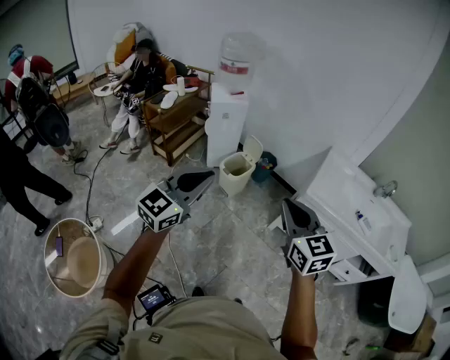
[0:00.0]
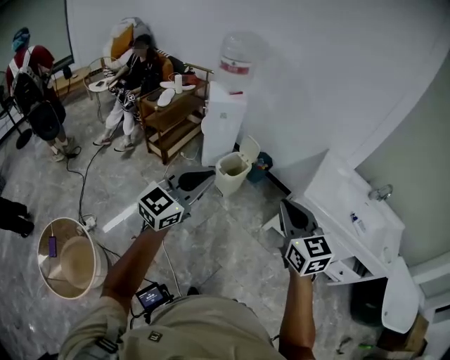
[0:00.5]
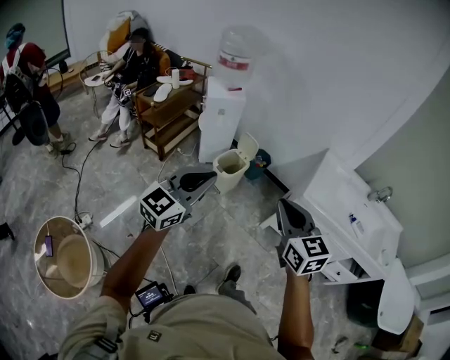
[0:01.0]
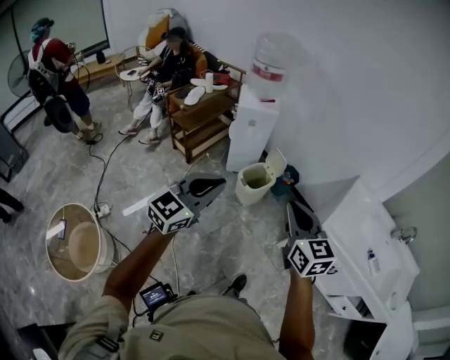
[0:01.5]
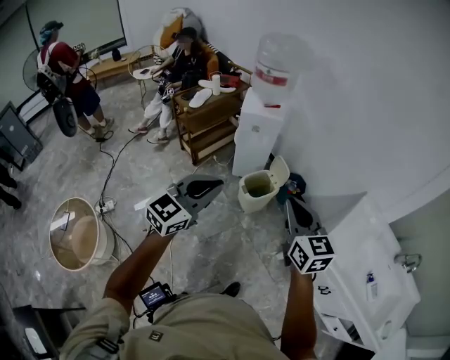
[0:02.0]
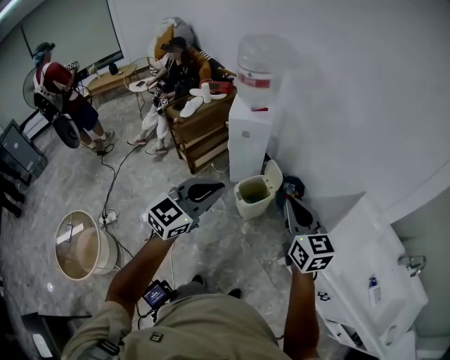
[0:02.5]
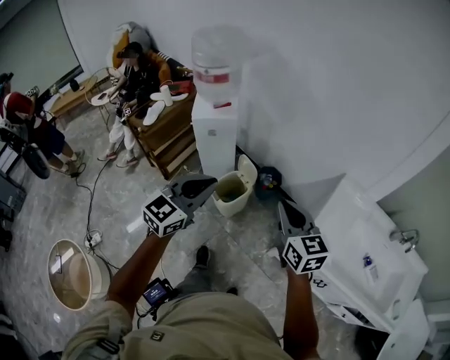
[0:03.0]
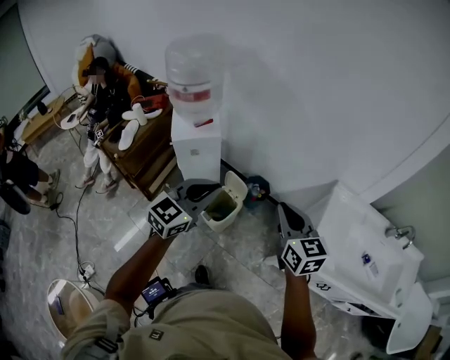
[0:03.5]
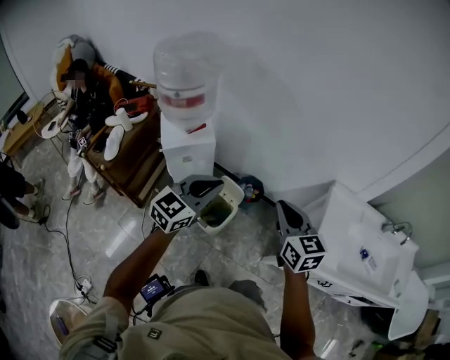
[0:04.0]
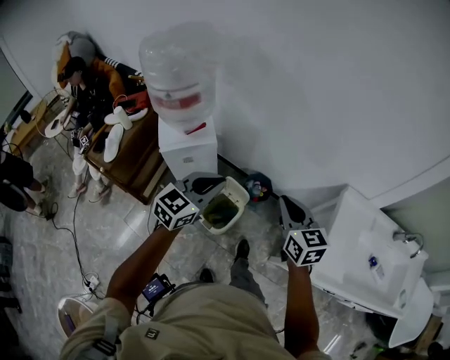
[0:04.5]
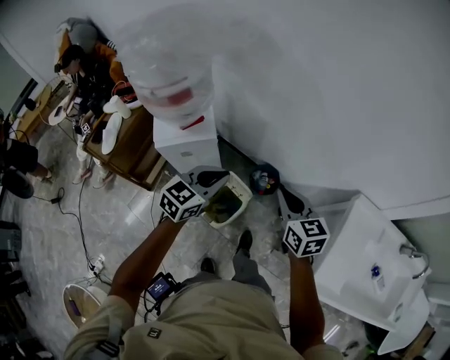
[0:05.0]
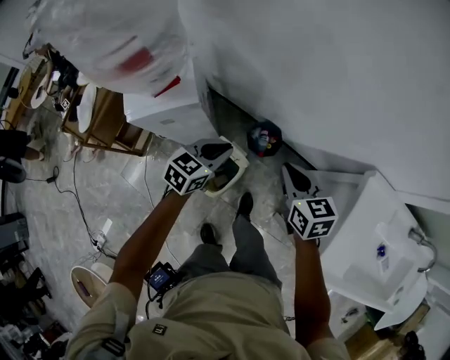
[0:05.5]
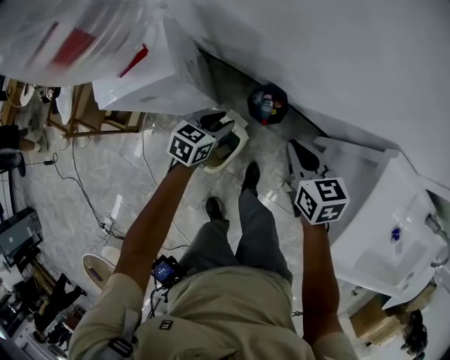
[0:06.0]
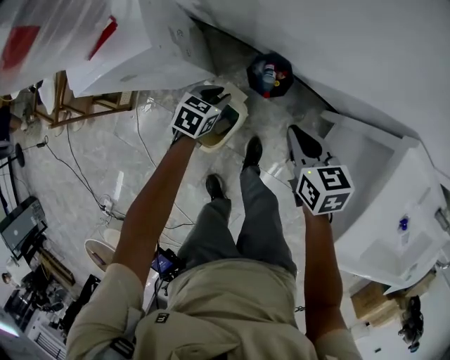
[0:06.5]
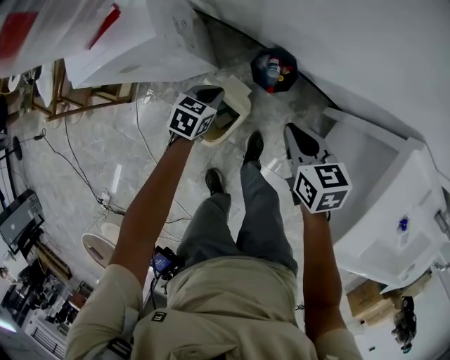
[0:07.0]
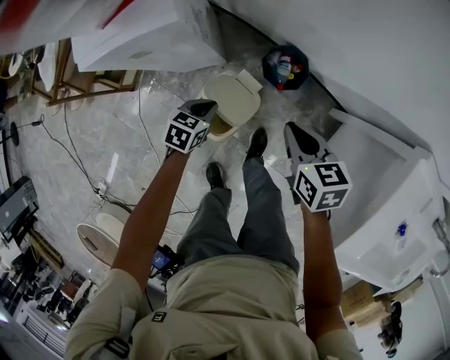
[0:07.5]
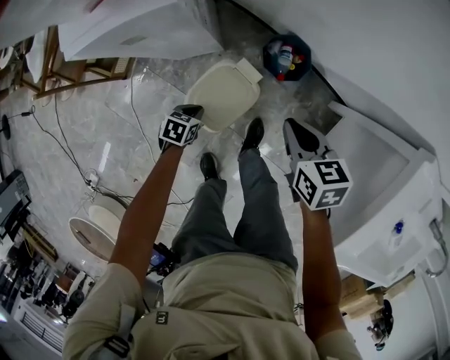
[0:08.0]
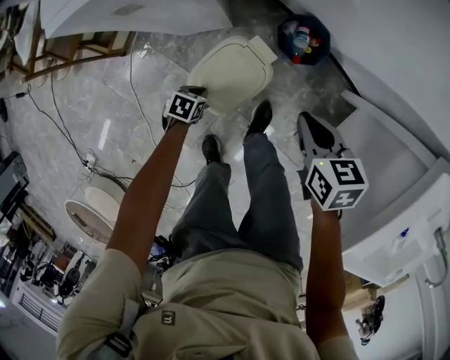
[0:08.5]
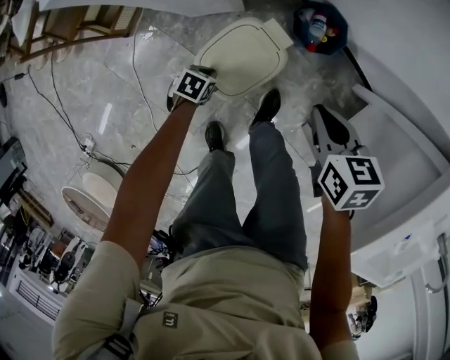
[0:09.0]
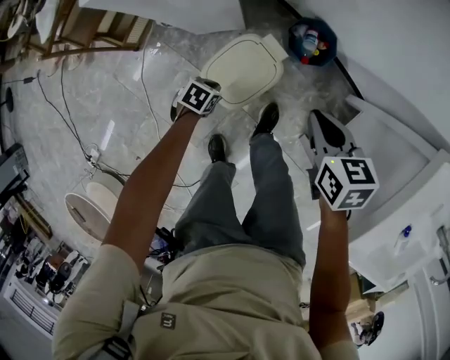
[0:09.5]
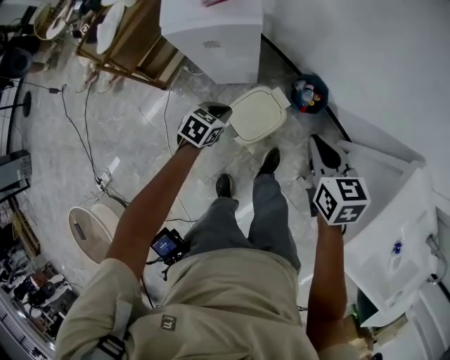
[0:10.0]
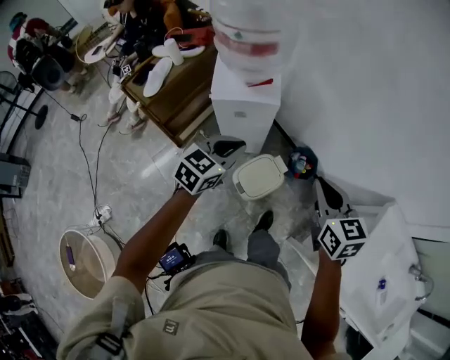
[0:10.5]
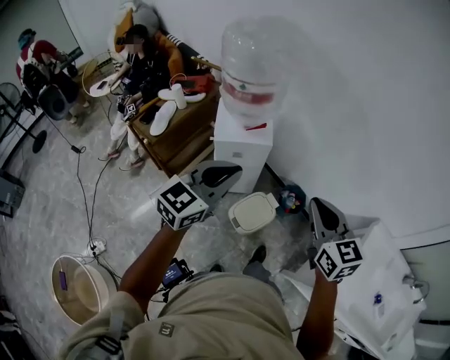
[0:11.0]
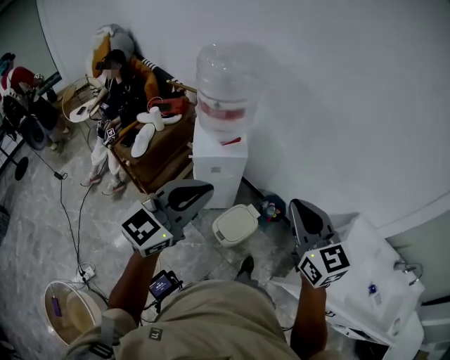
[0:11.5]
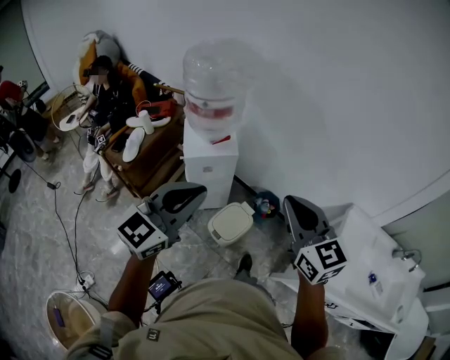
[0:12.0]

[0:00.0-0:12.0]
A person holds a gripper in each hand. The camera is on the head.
0:00.0 to 0:02.0: Both grippers travel together forward, some 25 cm.
0:02.0 to 0:04.0: The right gripper moves about 30 cm, and changes its angle by approximately 30 degrees. Meanwhile the left gripper changes place by approximately 40 cm, and rotates some 30 degrees.
0:04.0 to 0:06.0: The two grippers go approximately 50 cm downward and forward. The right gripper swivels some 30 degrees. Meanwhile the left gripper tips its fingers downward by some 30 degrees, and opens up.
0:06.0 to 0:08.0: The right gripper is displaced downward and to the left by approximately 15 cm. Meanwhile the left gripper goes roughly 30 cm downward, backward and to the left, changes its angle by some 30 degrees, and closes.
0:08.0 to 0:10.0: Both grippers move upward, about 20 cm.
0:10.0 to 0:12.0: The two grippers go approximately 50 cm upward. The left gripper points its fingers about 50 degrees further upward. The right gripper tilts its fingers some 30 degrees upward.

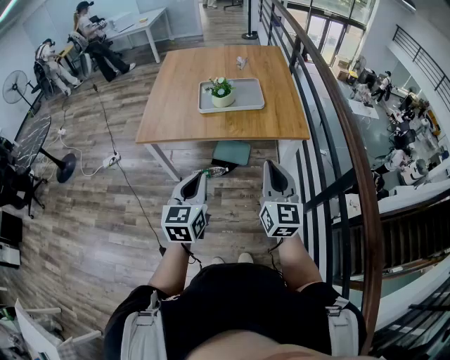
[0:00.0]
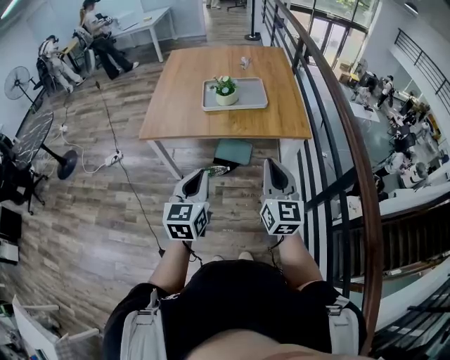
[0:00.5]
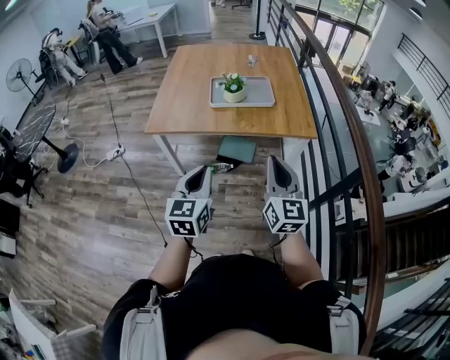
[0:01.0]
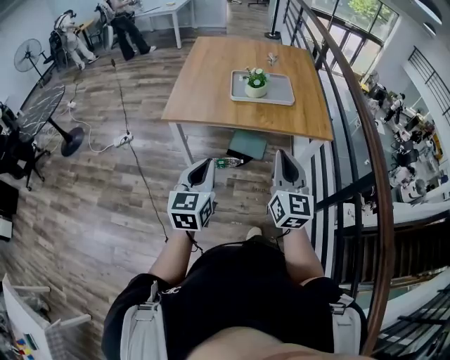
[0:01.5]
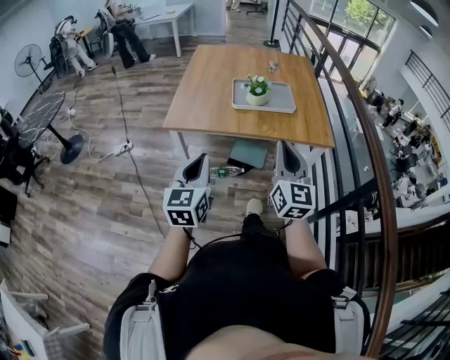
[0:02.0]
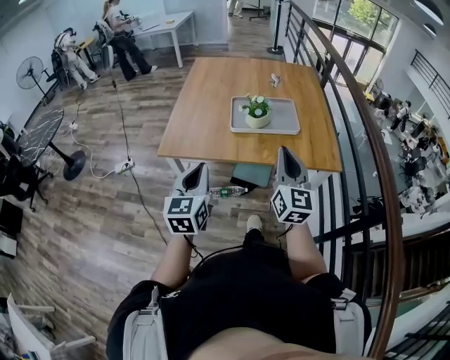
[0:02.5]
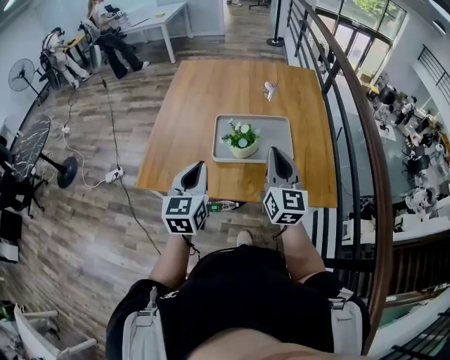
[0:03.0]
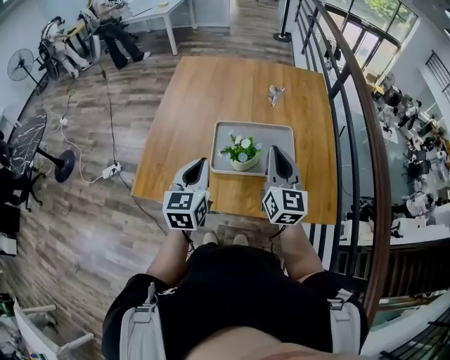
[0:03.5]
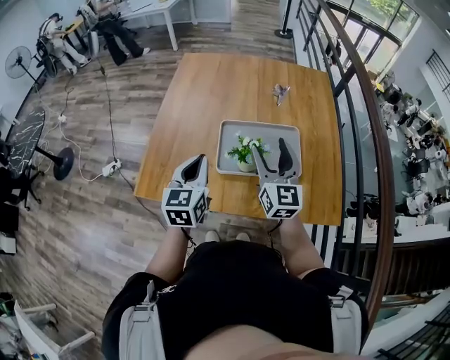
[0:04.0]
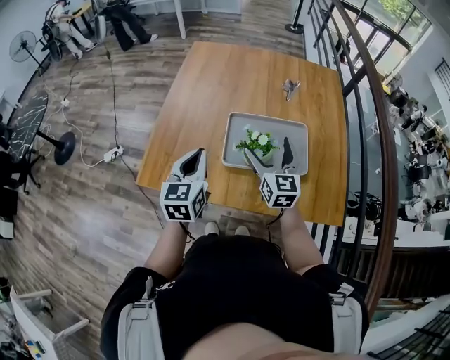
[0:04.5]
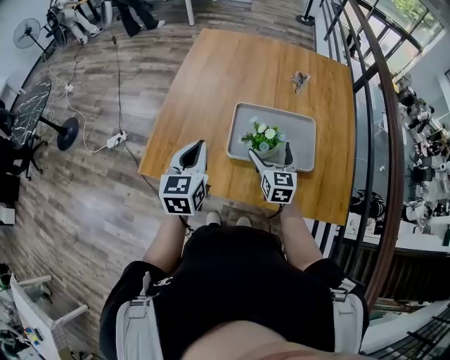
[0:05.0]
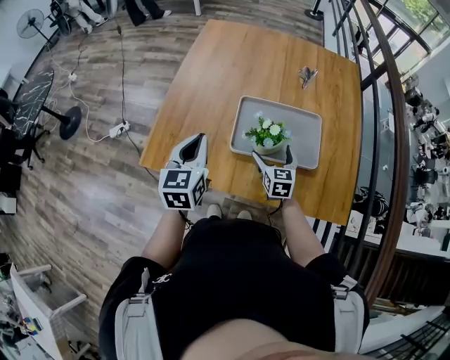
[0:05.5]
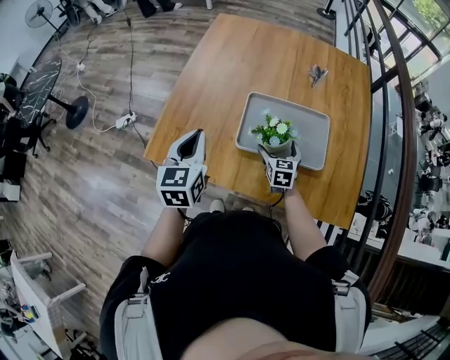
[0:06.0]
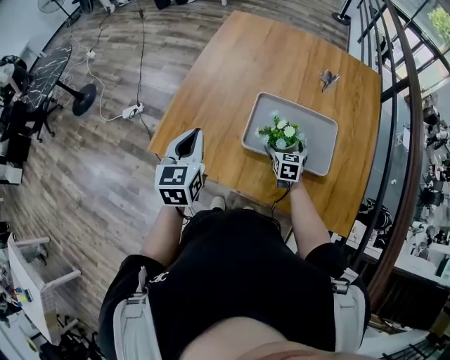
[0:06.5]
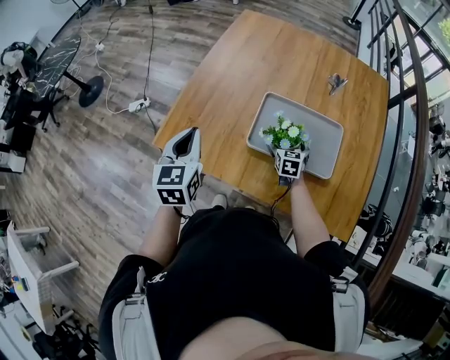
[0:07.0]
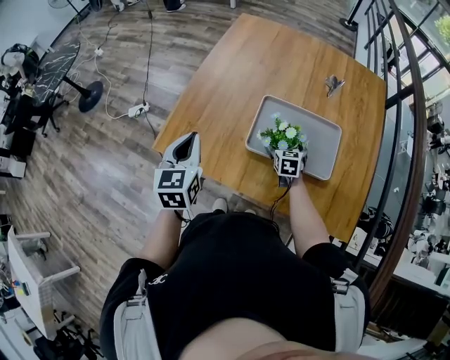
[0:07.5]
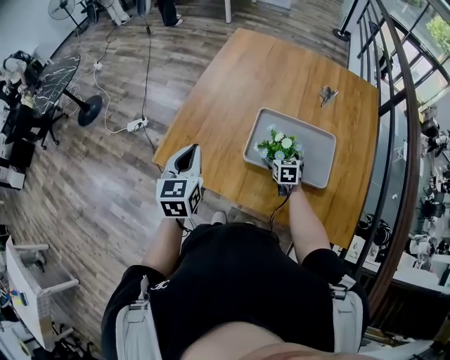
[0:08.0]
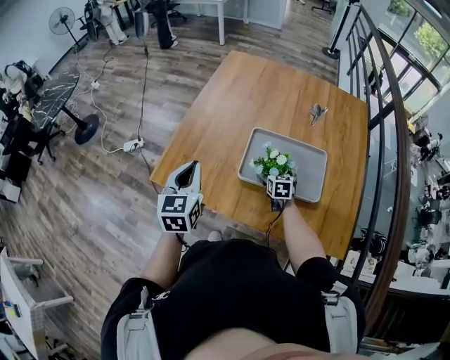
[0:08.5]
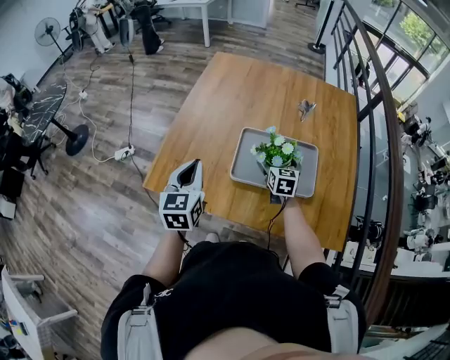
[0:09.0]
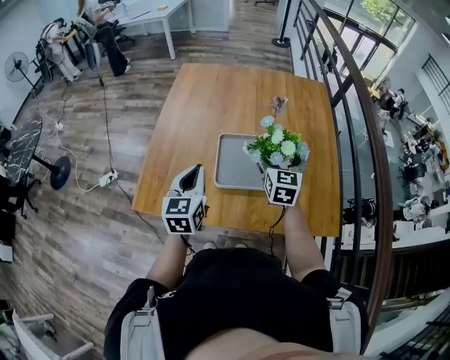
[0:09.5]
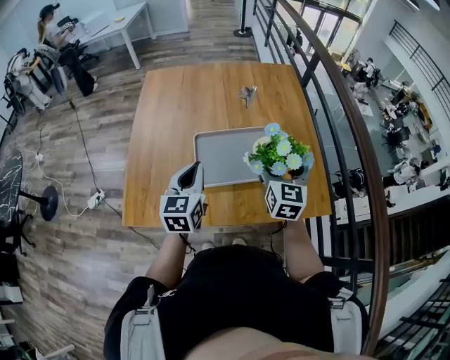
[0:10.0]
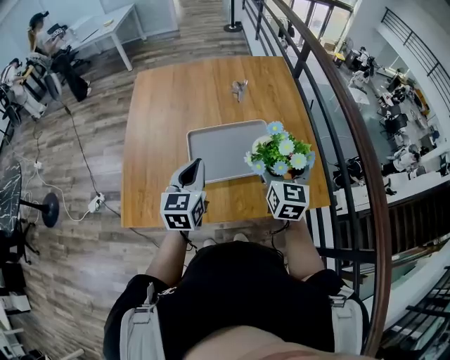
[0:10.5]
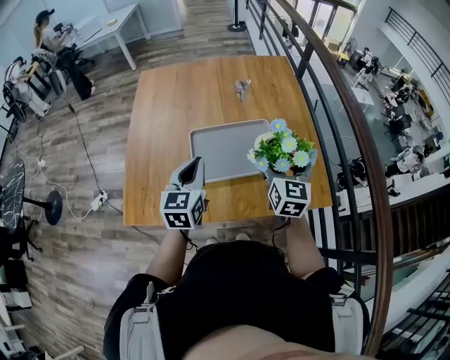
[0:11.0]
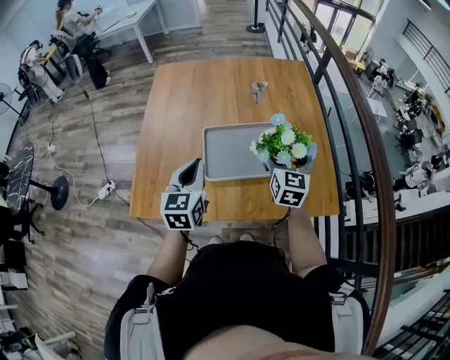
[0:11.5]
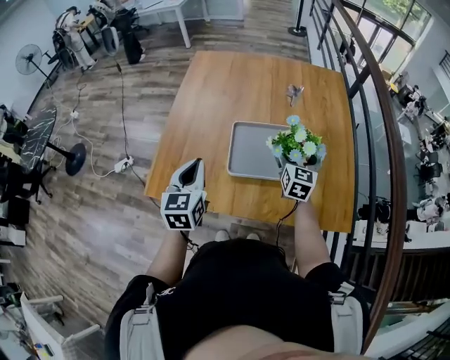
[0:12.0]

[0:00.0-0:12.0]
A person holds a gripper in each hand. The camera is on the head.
0:00.0 to 0:02.0: The grippers both shift to the left by approximately 15 cm.
0:02.0 to 0:04.0: Both grippers are carried forward, some 50 cm. The right gripper opens its fingers.
0:04.0 to 0:06.0: The right gripper is displaced downward by about 30 cm, tilts its fingers approximately 40 degrees downward, and opens; the left gripper moves to the left, approximately 5 cm.
0:06.0 to 0:08.0: The right gripper moves roughly 5 cm.
0:08.0 to 0:10.0: The right gripper travels upward by approximately 30 cm, and tilts its fingers roughly 30 degrees upward. Meanwhile the left gripper changes place by about 15 cm, and turns by roughly 30 degrees.
0:10.0 to 0:12.0: The right gripper is displaced downward and forward by roughly 10 cm. The left gripper heads to the left, covering approximately 5 cm.

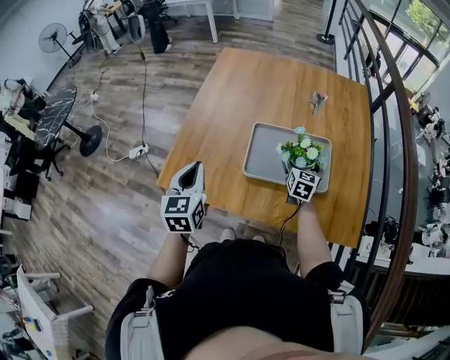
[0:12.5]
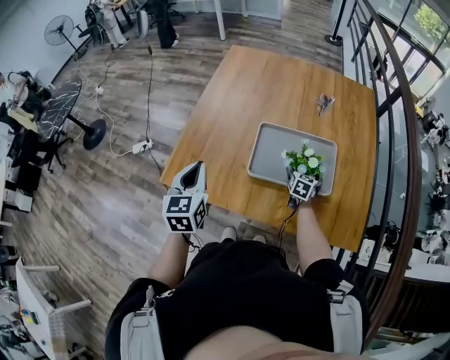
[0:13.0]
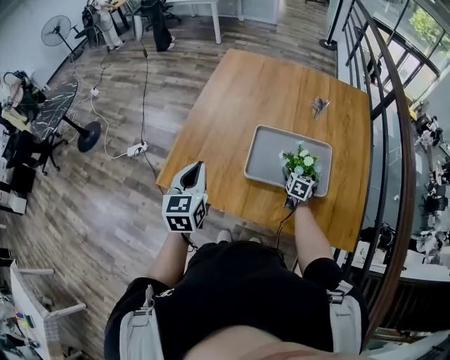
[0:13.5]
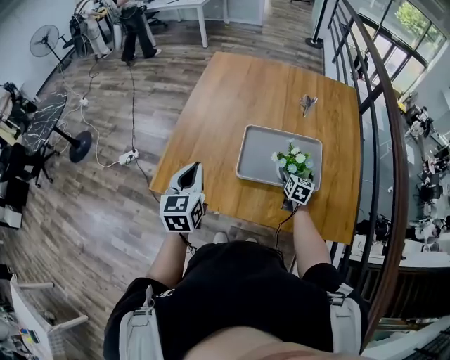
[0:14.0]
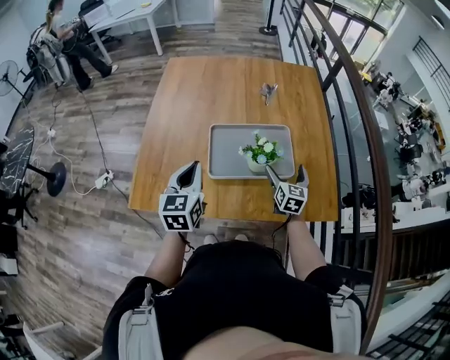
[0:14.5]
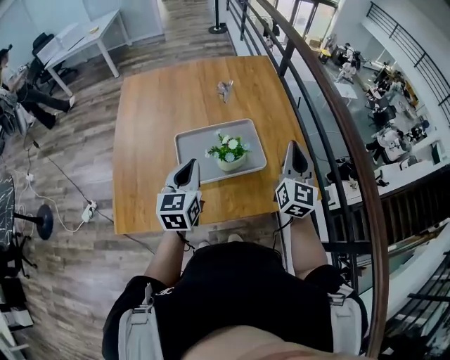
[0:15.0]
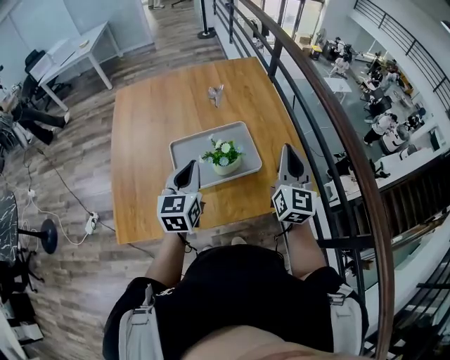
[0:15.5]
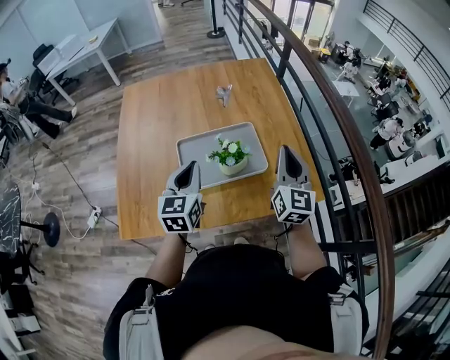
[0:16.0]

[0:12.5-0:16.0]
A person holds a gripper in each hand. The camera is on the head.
0:12.5 to 0:14.5: The left gripper shifts some 10 cm to the right, while the right gripper moves backward and to the right, about 10 cm, and moves about 10 cm downward and comes back.
0:14.5 to 0:16.0: The left gripper heads to the right and forward, covering some 10 cm. The right gripper travels upward and to the right by roughly 20 cm, rotates roughly 30 degrees, and closes.
